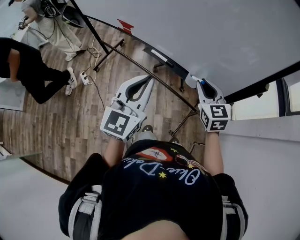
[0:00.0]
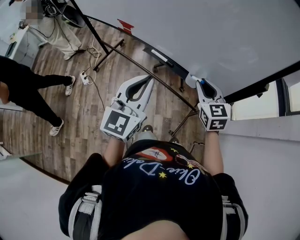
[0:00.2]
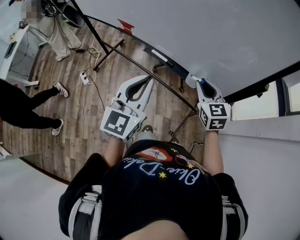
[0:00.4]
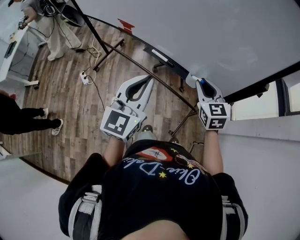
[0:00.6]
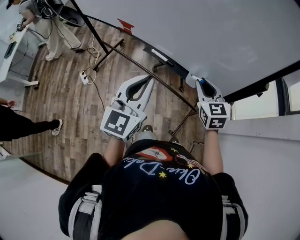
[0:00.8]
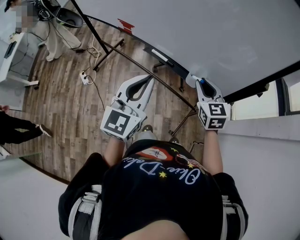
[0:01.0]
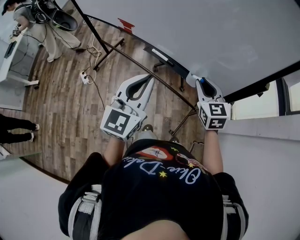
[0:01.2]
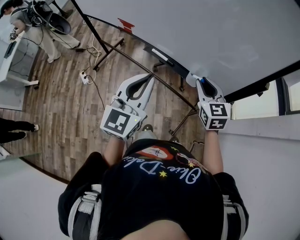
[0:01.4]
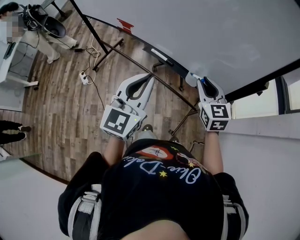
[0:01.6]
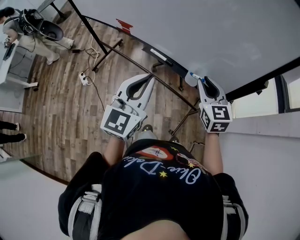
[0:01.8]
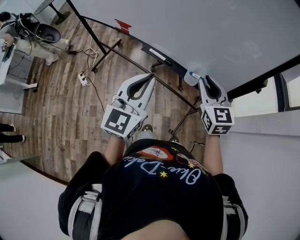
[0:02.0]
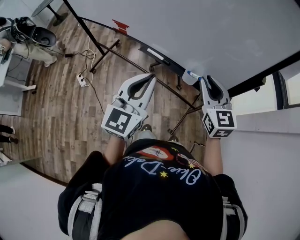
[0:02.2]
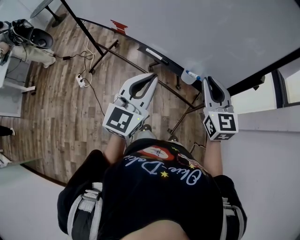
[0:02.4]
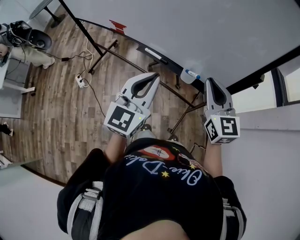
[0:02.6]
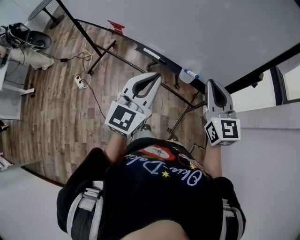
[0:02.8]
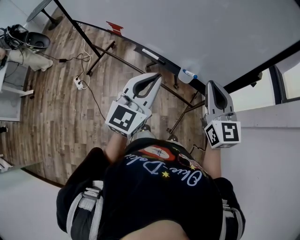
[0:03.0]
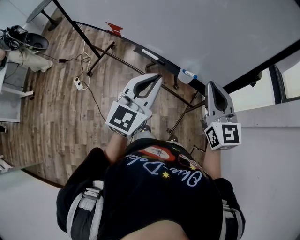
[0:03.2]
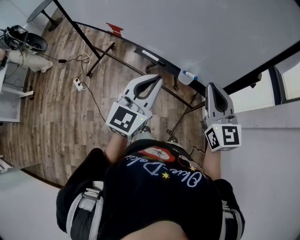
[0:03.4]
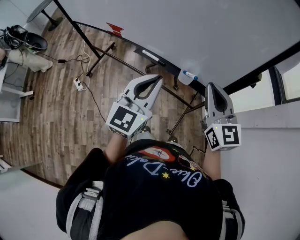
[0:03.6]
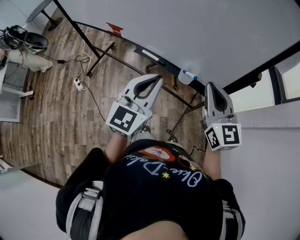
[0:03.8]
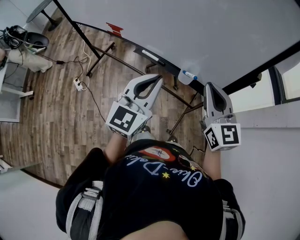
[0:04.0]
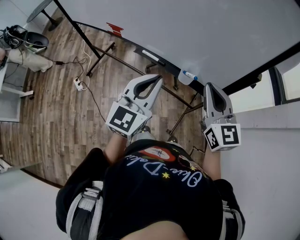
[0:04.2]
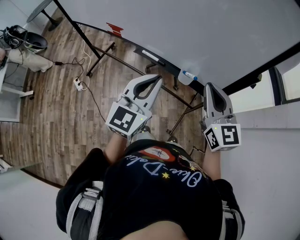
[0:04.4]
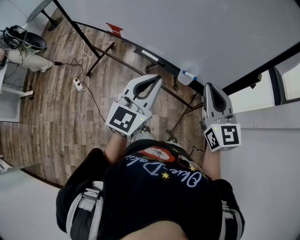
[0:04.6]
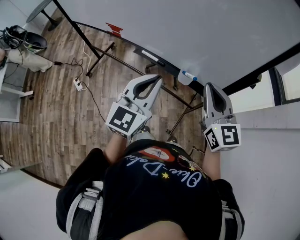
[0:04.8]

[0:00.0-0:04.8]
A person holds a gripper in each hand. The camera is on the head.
0:00.0 to 0:01.6: Both grippers stay about where they are.
0:01.6 to 0:03.2: The right gripper heads upward and backward, covering roughly 10 cm, and closes up.
0:03.2 to 0:04.8: The two grippers keep their place.

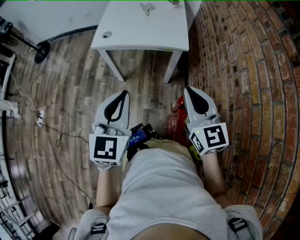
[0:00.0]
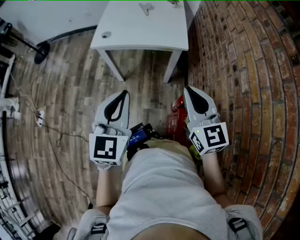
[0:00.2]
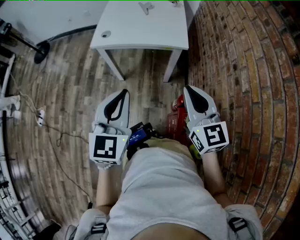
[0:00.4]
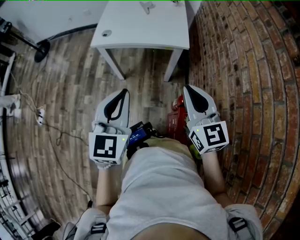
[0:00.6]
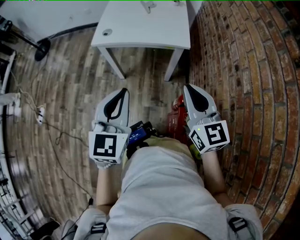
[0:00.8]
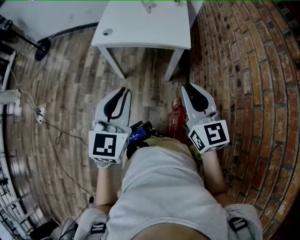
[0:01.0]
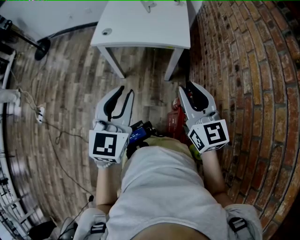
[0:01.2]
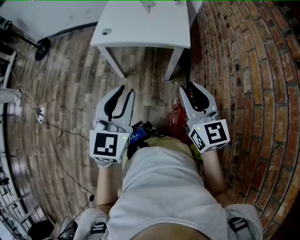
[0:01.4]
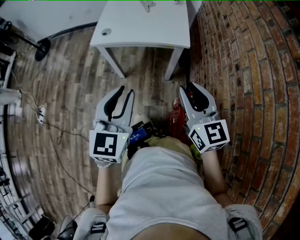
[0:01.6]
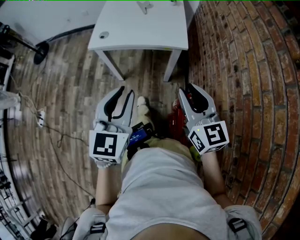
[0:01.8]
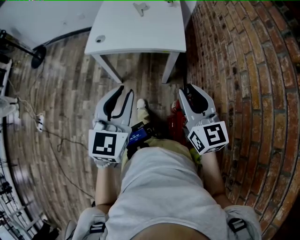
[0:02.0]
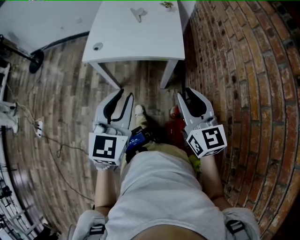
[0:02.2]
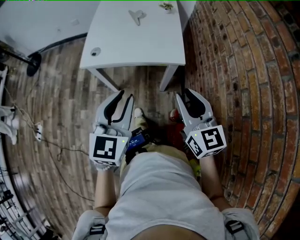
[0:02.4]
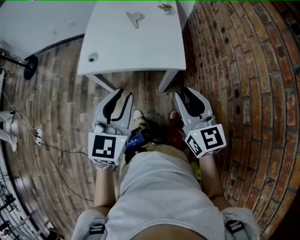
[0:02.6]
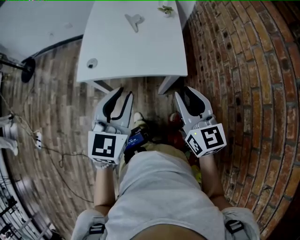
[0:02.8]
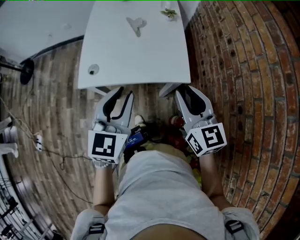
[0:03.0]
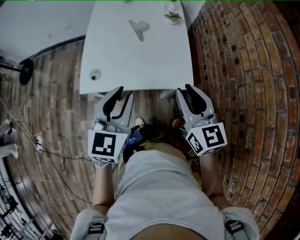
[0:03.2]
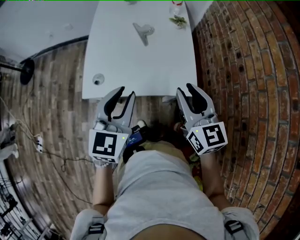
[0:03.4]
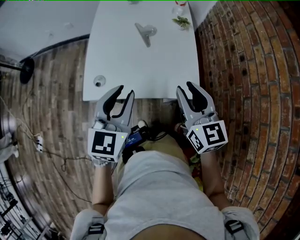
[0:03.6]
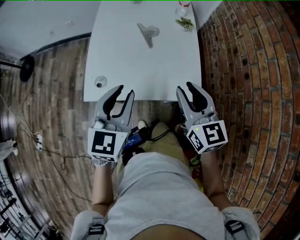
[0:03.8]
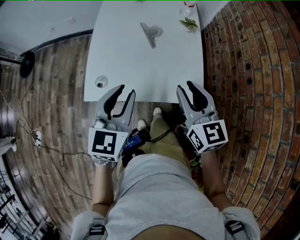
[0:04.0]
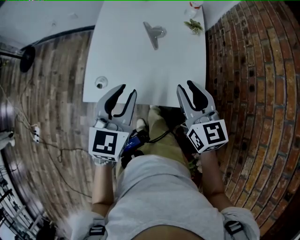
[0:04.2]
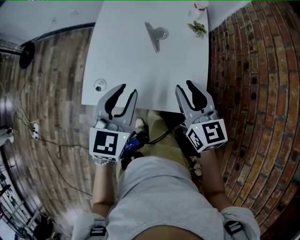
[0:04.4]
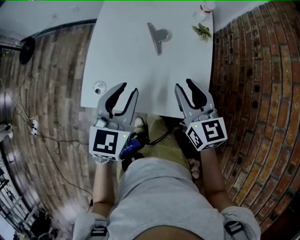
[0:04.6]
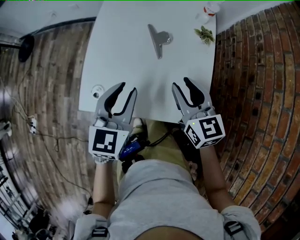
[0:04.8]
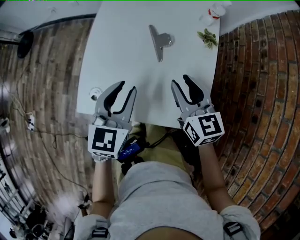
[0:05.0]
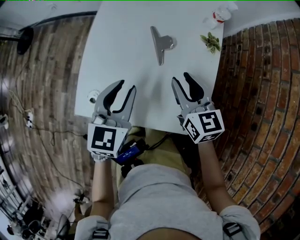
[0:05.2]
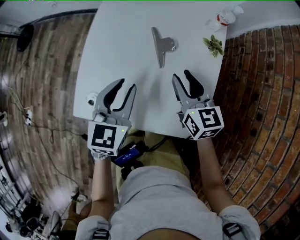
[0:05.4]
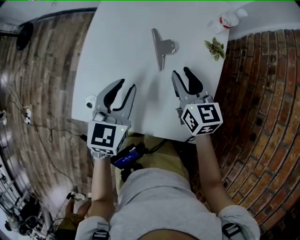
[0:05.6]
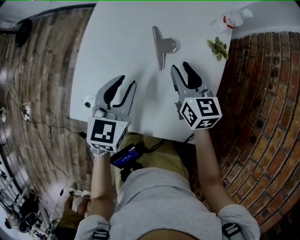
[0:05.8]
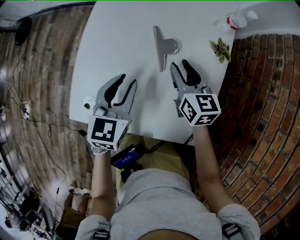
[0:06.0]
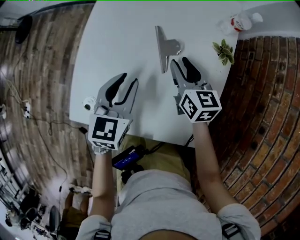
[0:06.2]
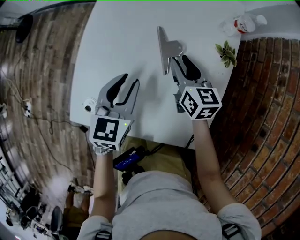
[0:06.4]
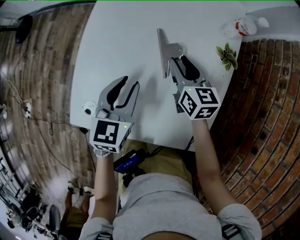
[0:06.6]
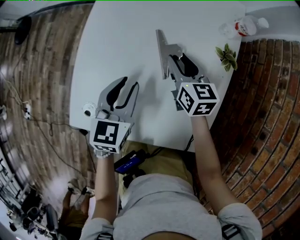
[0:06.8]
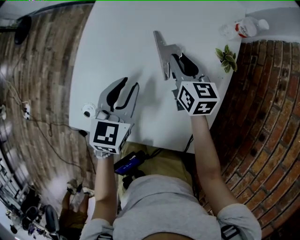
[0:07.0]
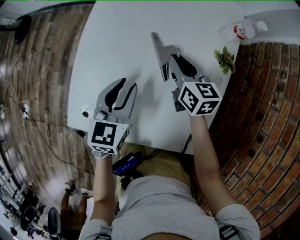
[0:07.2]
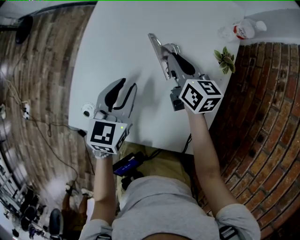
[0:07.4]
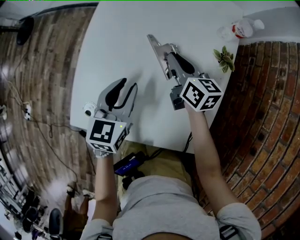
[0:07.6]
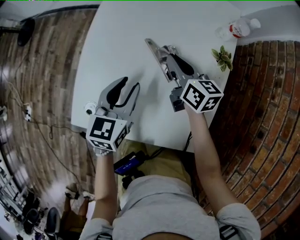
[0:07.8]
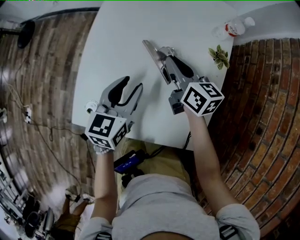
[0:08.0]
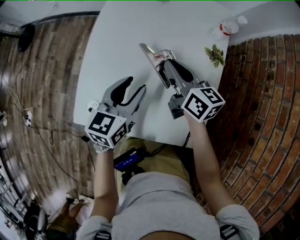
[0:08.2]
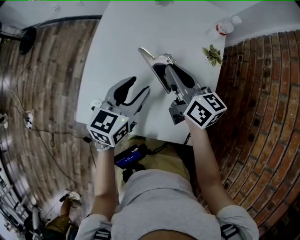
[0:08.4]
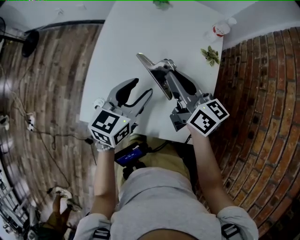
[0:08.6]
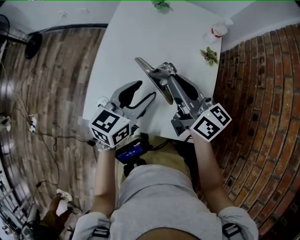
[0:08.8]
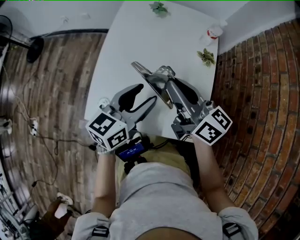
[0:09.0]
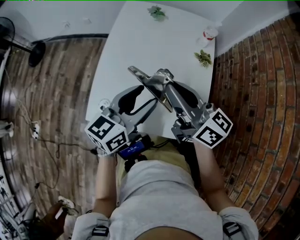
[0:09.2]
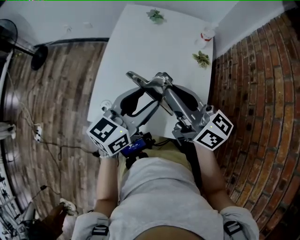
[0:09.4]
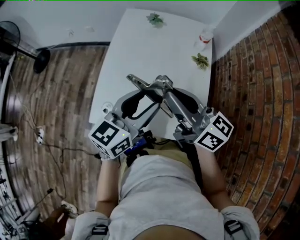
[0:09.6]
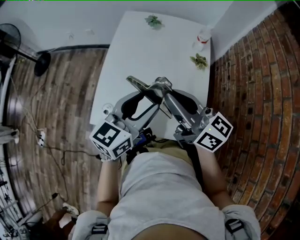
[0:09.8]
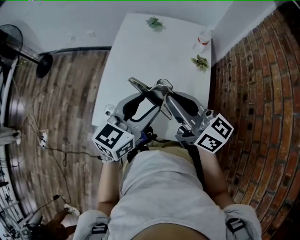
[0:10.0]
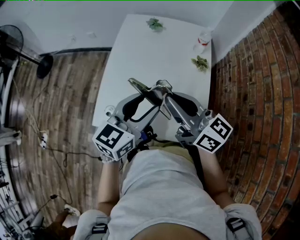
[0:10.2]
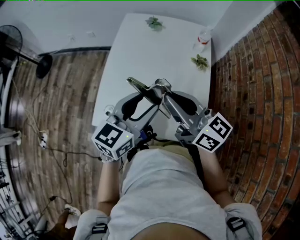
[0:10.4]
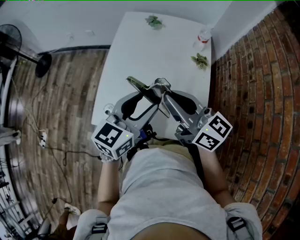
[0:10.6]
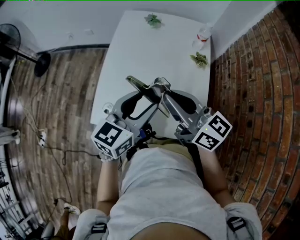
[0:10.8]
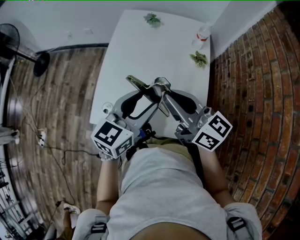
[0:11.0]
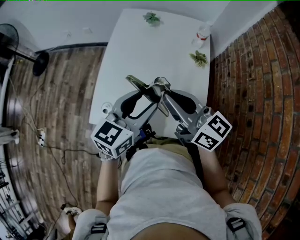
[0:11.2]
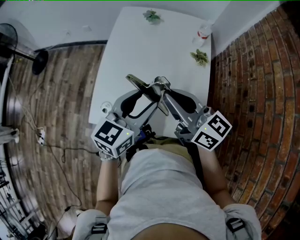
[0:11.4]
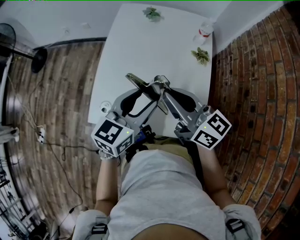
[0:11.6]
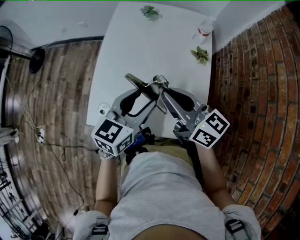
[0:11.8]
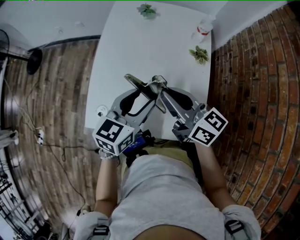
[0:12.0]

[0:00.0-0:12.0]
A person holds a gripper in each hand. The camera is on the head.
0:00.0 to 0:01.6: The right gripper opens its fingers.
0:01.6 to 0:03.0: The grippers both shift forward by approximately 25 cm.
0:03.0 to 0:04.4: The grippers both shift forward by approximately 15 cm.
0:04.4 to 0:06.0: Both grippers travel together forward and downward, roughly 20 cm.
0:06.0 to 0:07.6: The right gripper heads forward, covering about 5 cm, and closes up.
0:07.6 to 0:09.0: The right gripper heads upward and backward, covering roughly 25 cm, and rotates about 30 degrees. Meanwhile the left gripper heads upward and backward, covering approximately 15 cm, changes its angle by about 30 degrees, and opens up.
0:09.0 to 0:10.4: The left gripper ends up some 5 cm from where it was. Meanwhile the right gripper travels backward by roughly 5 cm.
0:10.4 to 0:12.0: The grippers both shift downward by approximately 5 cm.

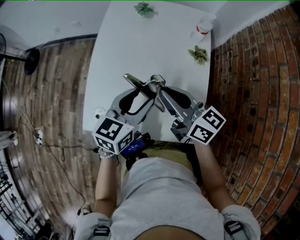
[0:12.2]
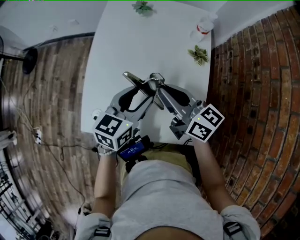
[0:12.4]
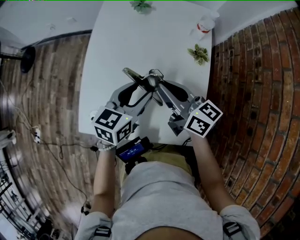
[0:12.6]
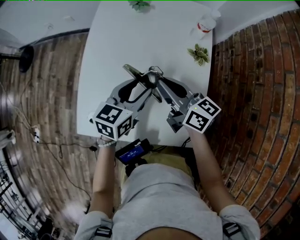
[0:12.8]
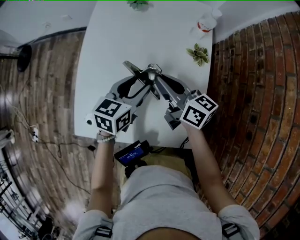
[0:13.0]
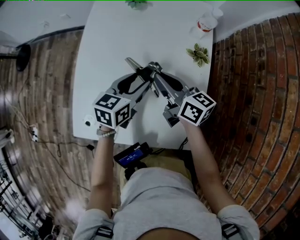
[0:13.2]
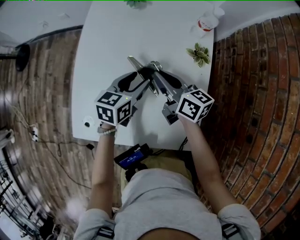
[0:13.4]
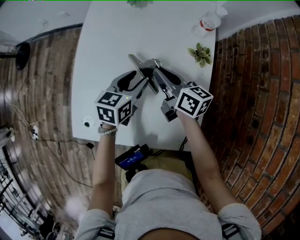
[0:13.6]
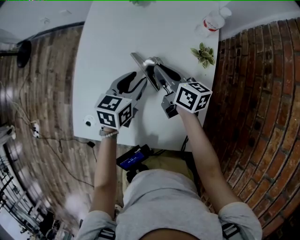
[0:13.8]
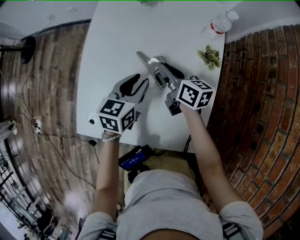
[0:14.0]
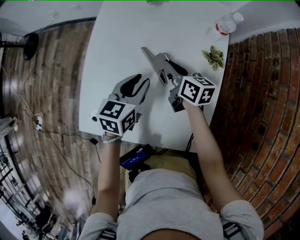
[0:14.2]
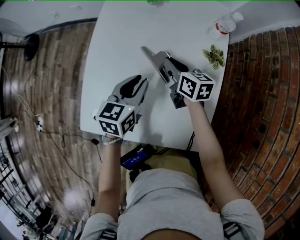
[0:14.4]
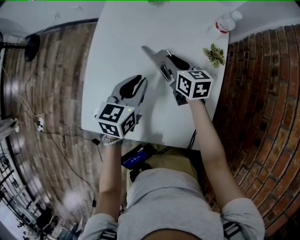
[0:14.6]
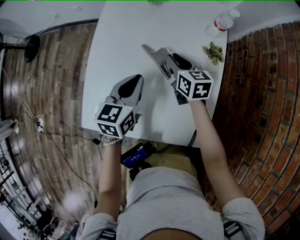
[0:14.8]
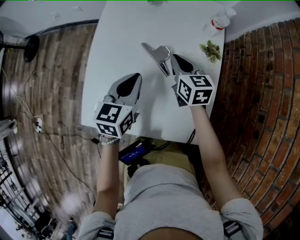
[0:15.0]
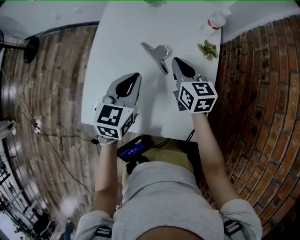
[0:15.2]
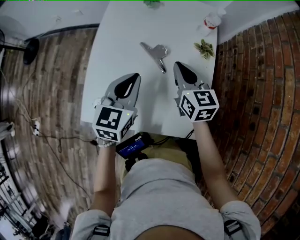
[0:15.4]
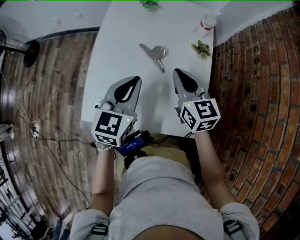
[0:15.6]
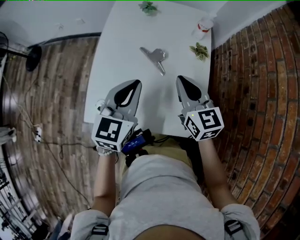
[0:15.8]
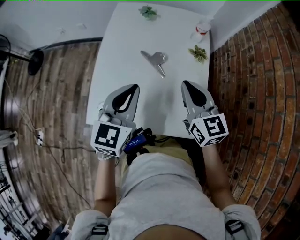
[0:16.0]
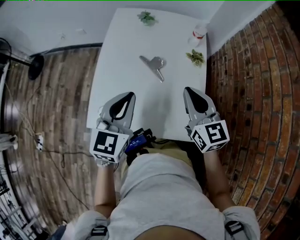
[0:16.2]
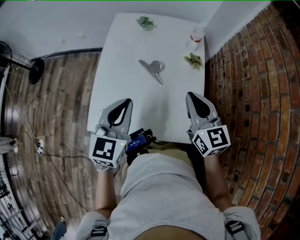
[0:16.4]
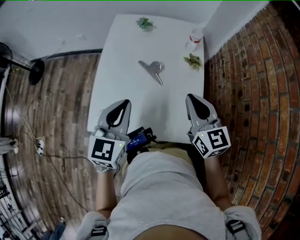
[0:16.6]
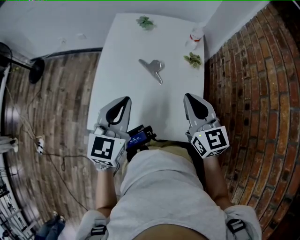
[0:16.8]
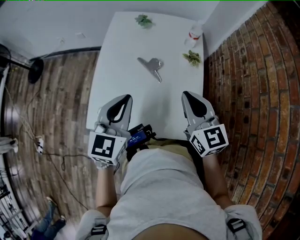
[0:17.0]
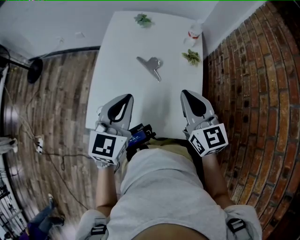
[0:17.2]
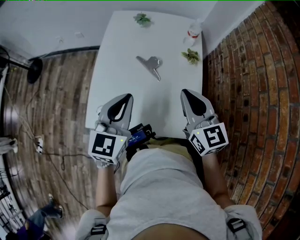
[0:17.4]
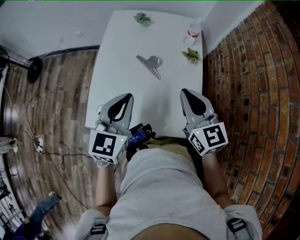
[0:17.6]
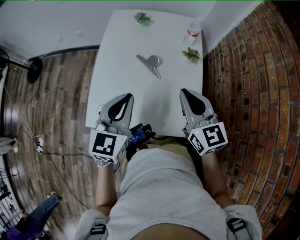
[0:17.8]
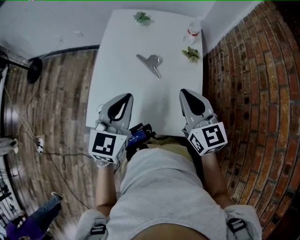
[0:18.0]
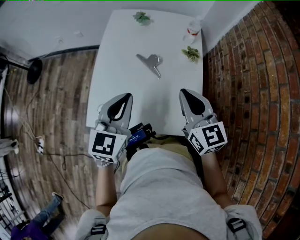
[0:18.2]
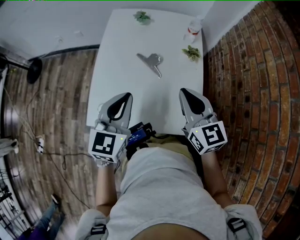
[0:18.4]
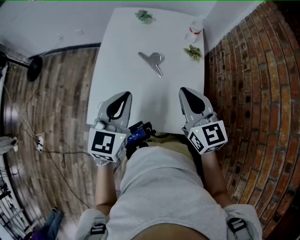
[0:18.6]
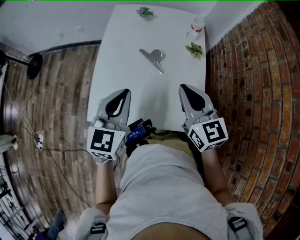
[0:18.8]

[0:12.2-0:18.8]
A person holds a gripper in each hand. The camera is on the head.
0:12.2 to 0:13.8: The two grippers go about 20 cm downward and forward. The right gripper changes its angle by some 20 degrees.
0:13.8 to 0:15.4: Both grippers travel together upward and backward, some 10 cm. The left gripper turns by approximately 20 degrees, and closes its fingers; the right gripper turns by roughly 30 degrees.
0:15.4 to 0:17.2: Both grippers move backward and upward, about 15 cm.
0:17.2 to 0:18.8: The grippers make only small movements.
